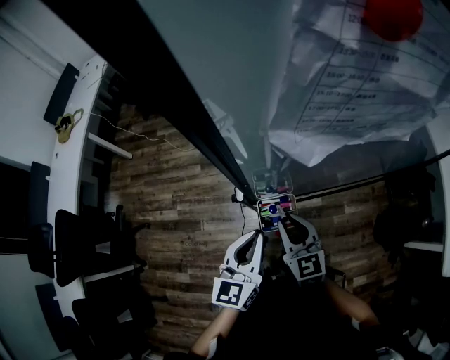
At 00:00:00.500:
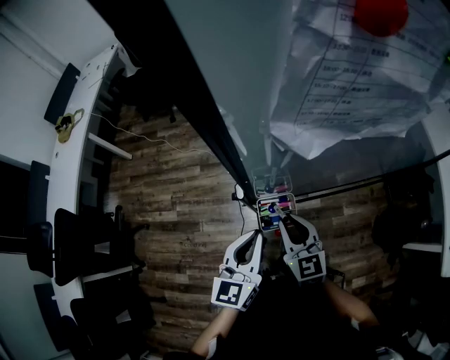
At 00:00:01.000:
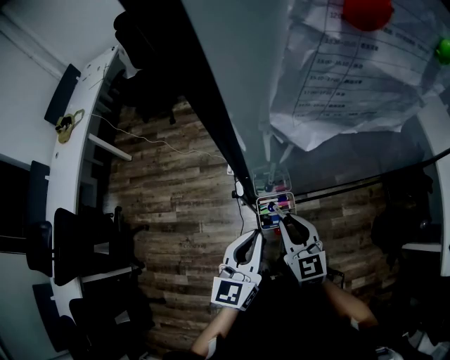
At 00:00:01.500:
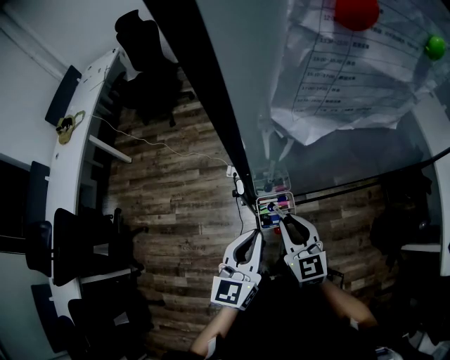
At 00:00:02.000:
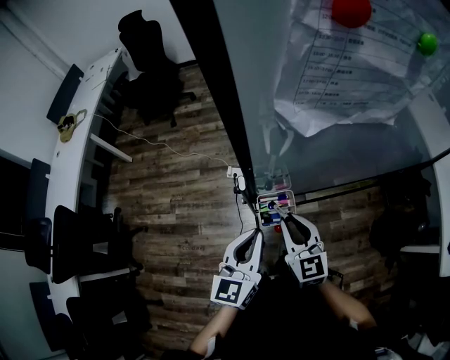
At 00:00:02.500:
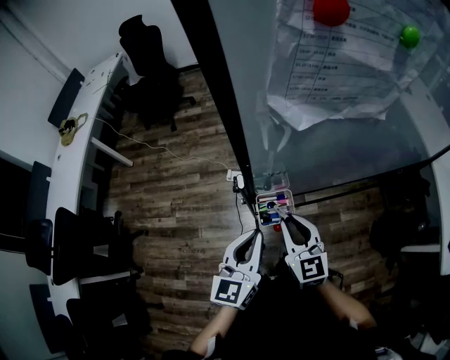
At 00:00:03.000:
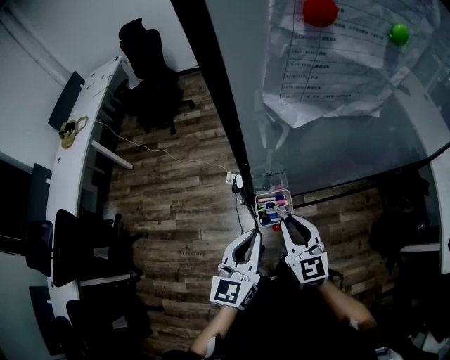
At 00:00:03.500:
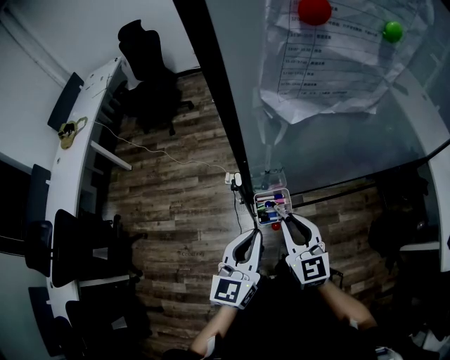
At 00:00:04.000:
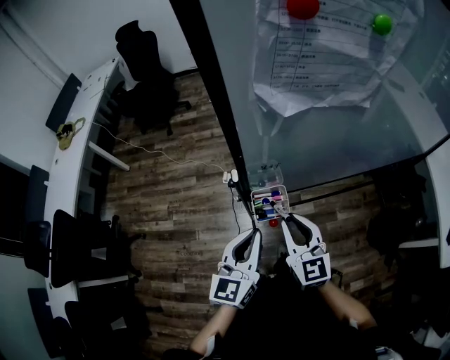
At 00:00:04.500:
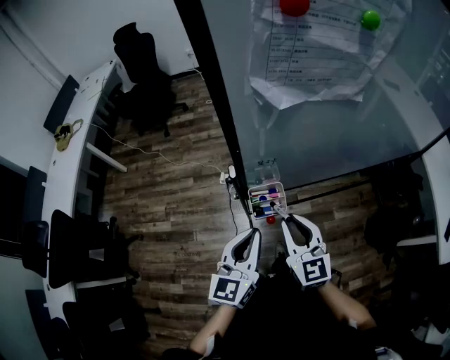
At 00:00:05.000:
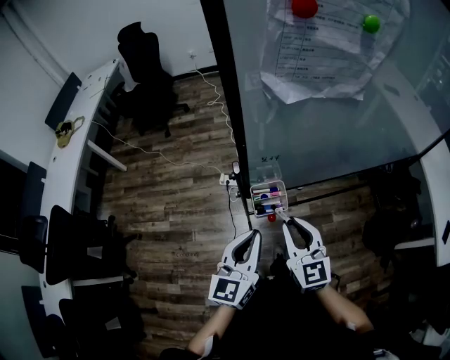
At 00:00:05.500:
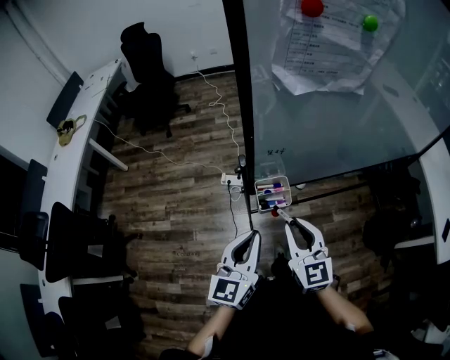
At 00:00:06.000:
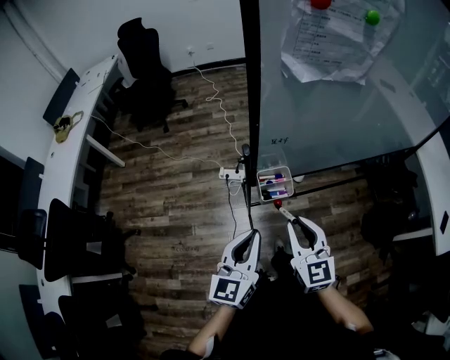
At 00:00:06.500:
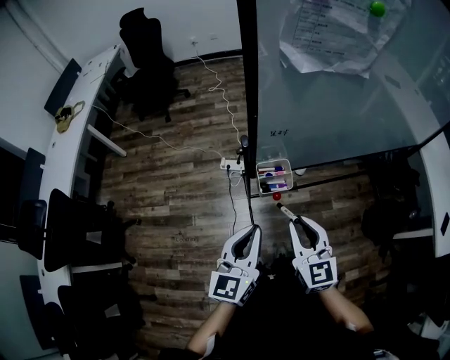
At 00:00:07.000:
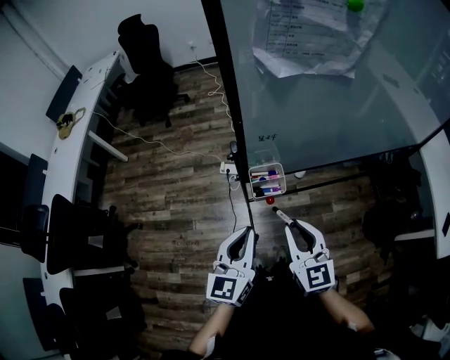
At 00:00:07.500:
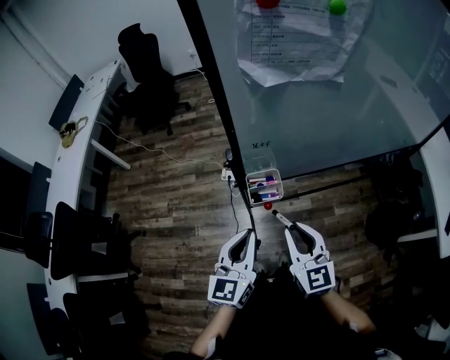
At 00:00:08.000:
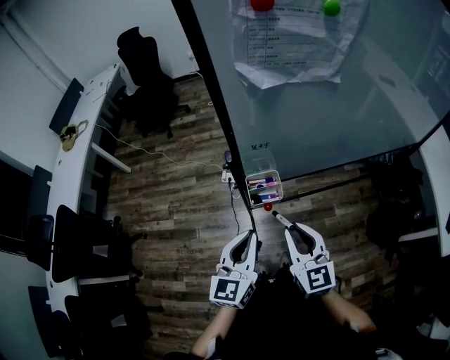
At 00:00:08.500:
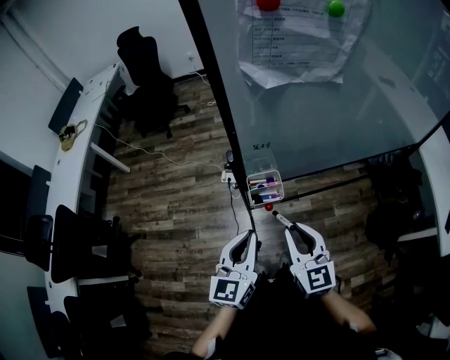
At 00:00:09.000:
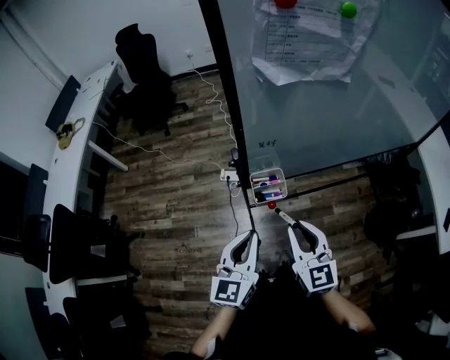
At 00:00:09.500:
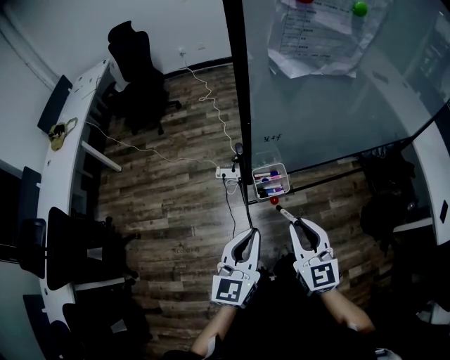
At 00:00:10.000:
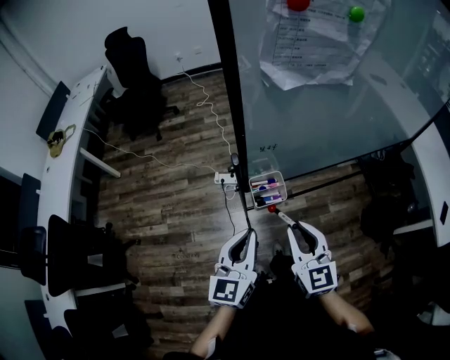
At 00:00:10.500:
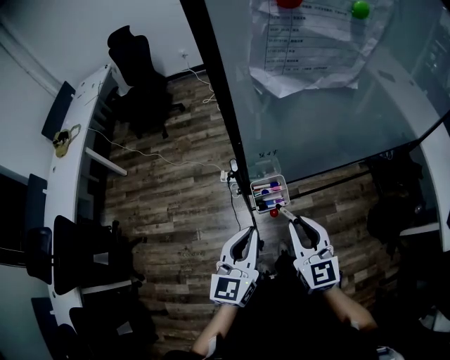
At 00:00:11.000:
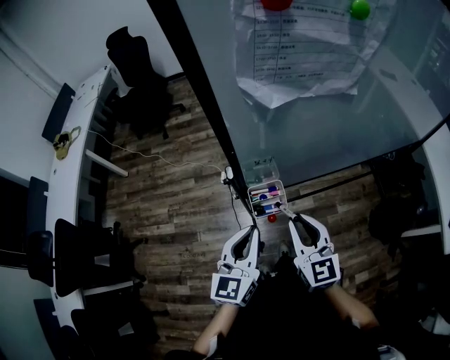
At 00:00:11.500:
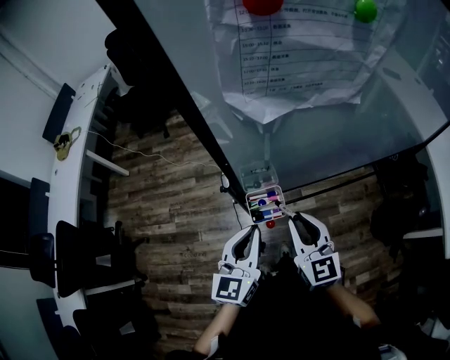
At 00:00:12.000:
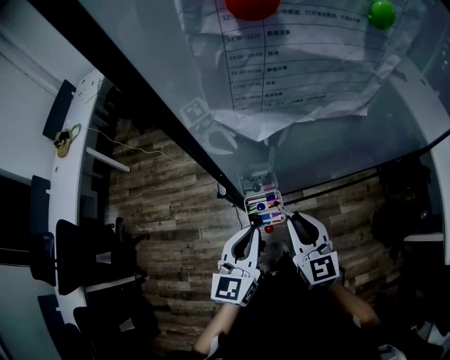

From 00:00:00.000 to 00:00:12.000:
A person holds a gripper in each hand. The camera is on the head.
From 00:00:00.000 to 00:00:02.000: The grippers move only a little.
From 00:00:02.000 to 00:00:04.000: The grippers make only small movements.
From 00:00:04.000 to 00:00:06.000: The grippers both shift backward by approximately 10 cm.
From 00:00:06.000 to 00:00:10.000: The grippers move only a little.
From 00:00:10.000 to 00:00:12.000: Both grippers move forward, roughly 10 cm.

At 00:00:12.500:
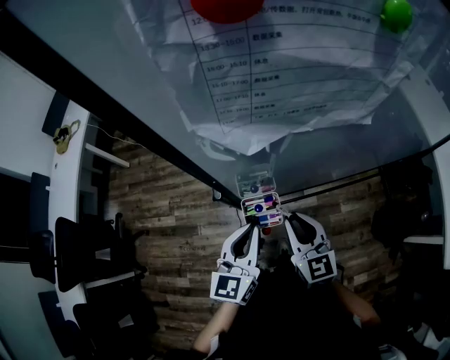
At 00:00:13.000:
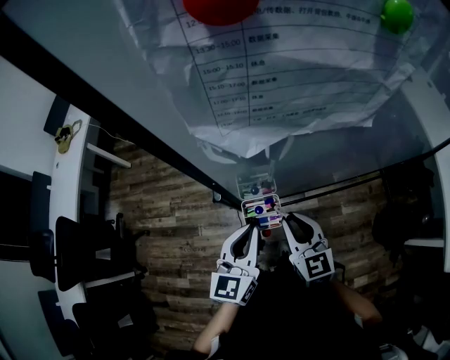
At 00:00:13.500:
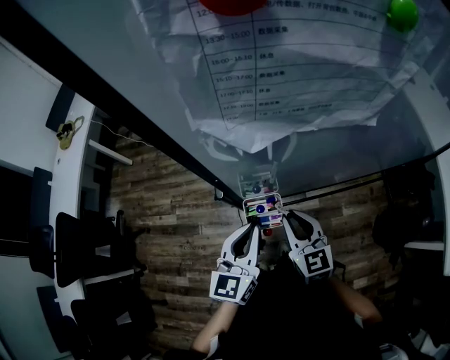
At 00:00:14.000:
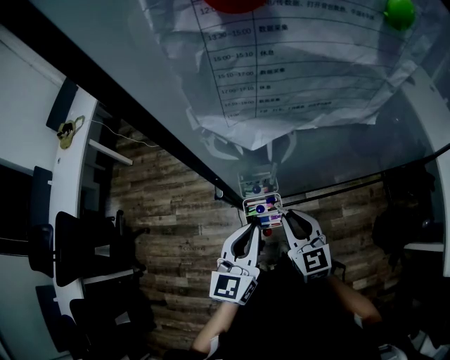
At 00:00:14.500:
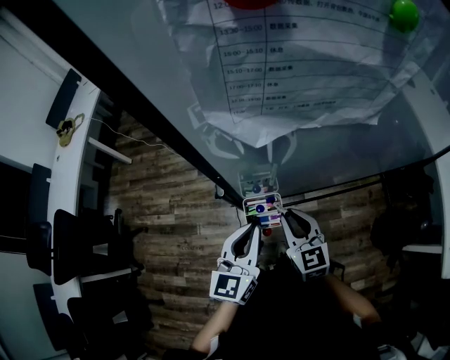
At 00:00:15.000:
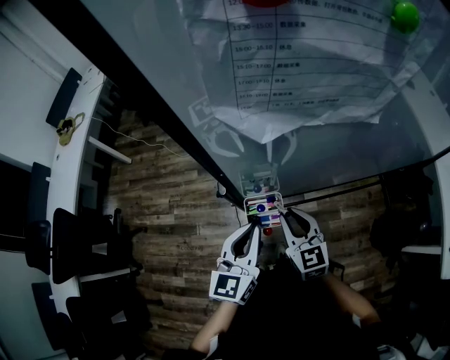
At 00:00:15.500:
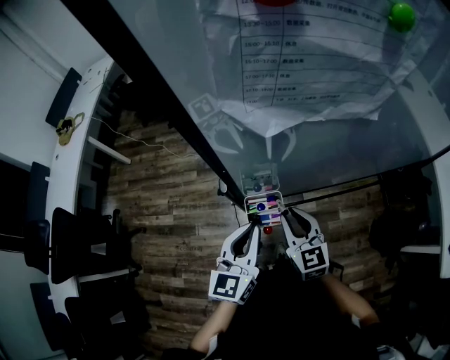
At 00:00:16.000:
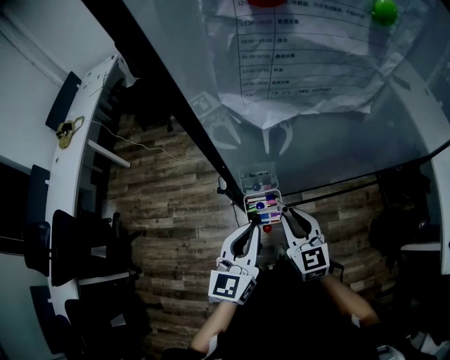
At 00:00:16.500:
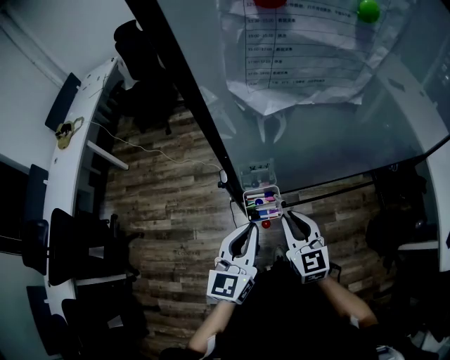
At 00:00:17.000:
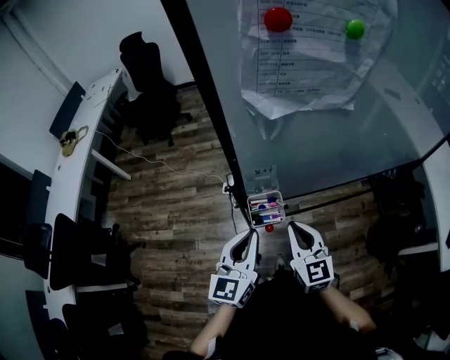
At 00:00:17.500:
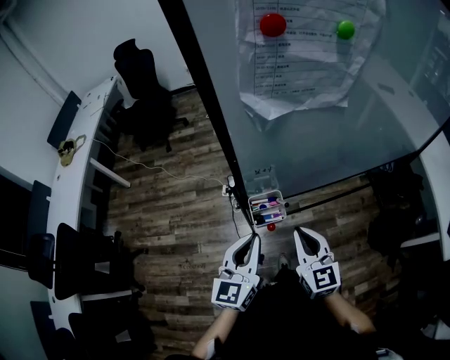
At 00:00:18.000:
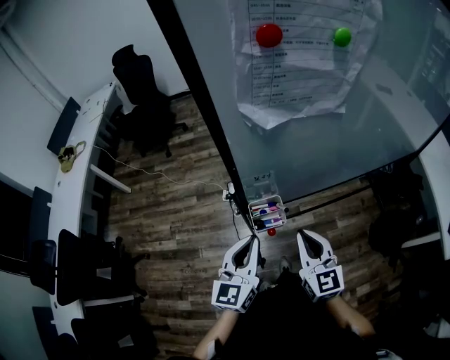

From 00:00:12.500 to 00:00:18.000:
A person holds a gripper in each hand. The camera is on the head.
From 00:00:12.500 to 00:00:16.000: The grippers move only a little.
From 00:00:16.000 to 00:00:18.000: The right gripper goes roughly 10 cm upward and backward.

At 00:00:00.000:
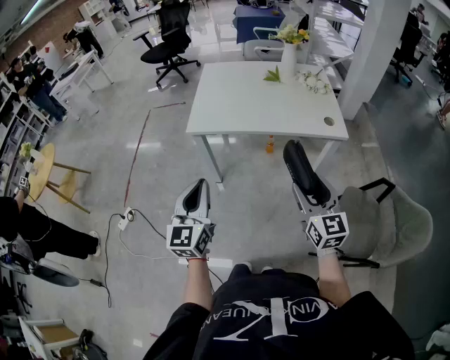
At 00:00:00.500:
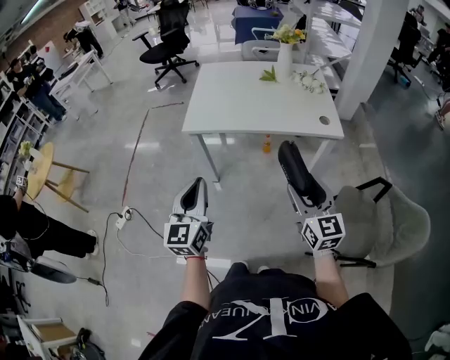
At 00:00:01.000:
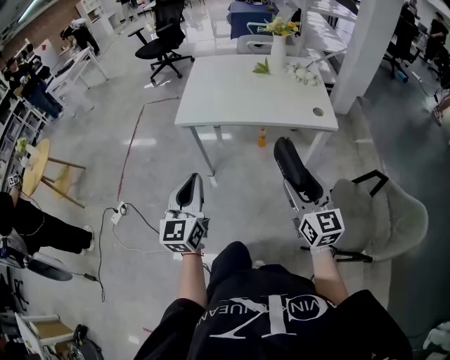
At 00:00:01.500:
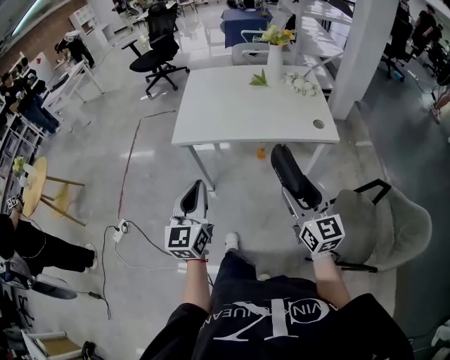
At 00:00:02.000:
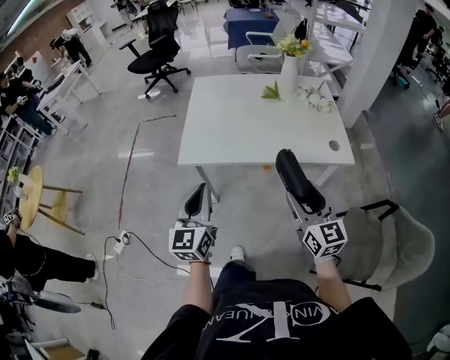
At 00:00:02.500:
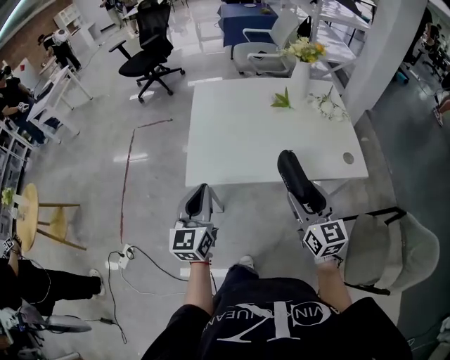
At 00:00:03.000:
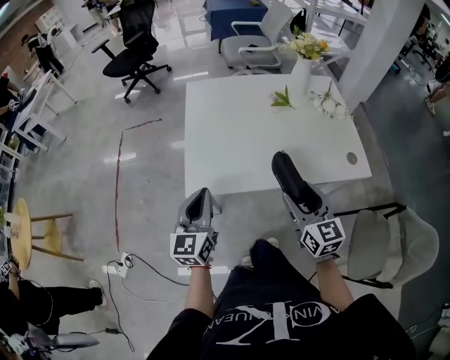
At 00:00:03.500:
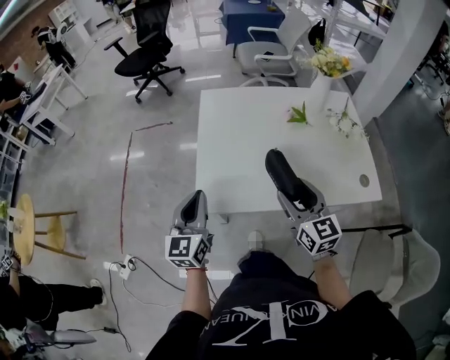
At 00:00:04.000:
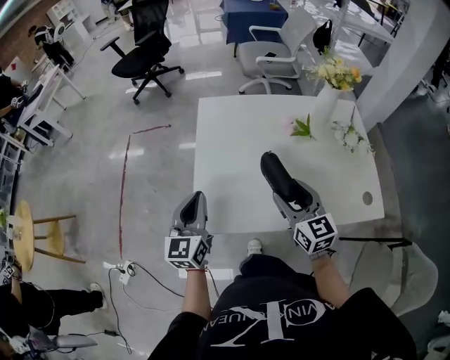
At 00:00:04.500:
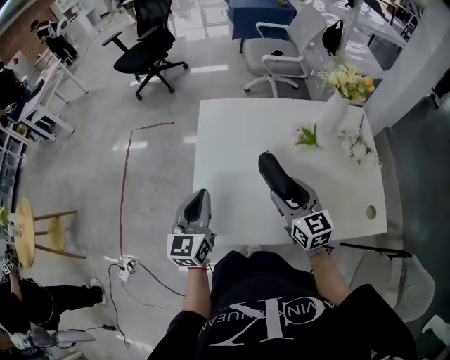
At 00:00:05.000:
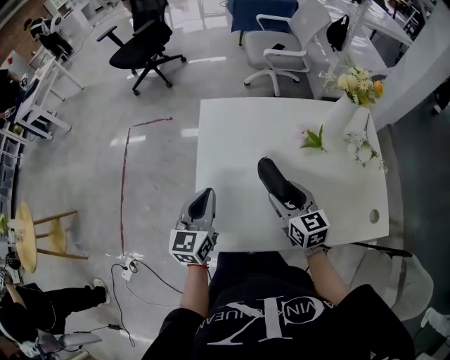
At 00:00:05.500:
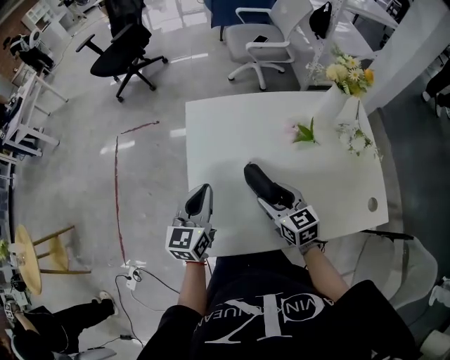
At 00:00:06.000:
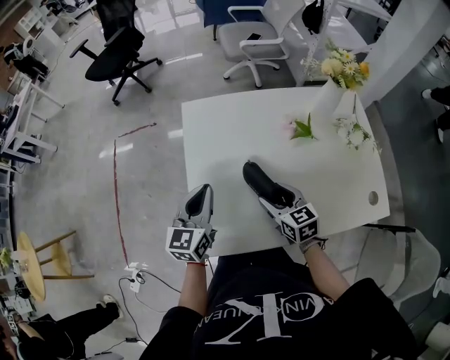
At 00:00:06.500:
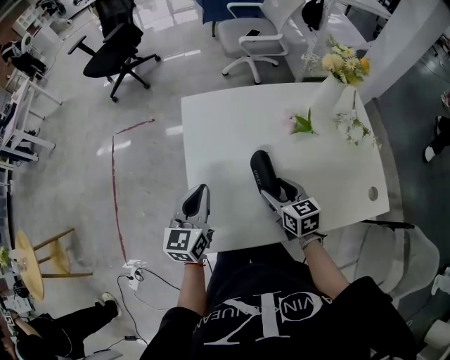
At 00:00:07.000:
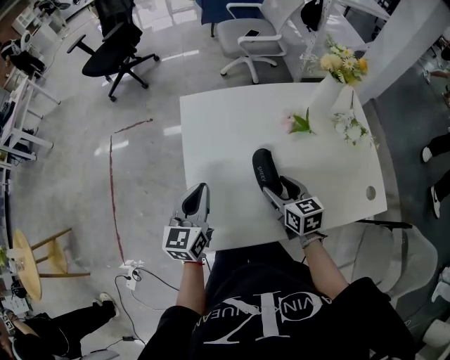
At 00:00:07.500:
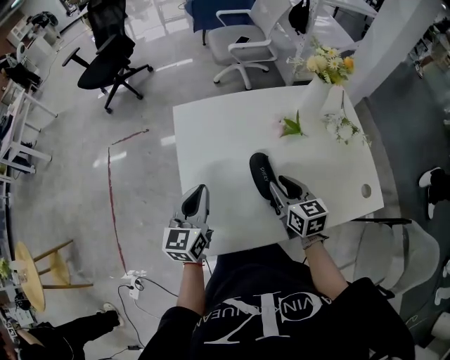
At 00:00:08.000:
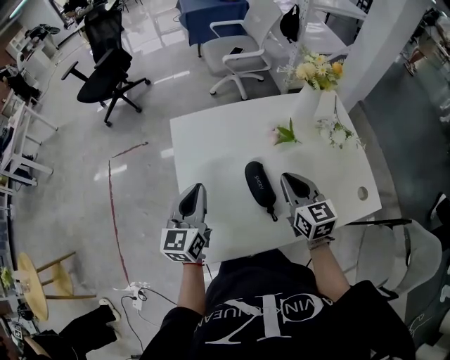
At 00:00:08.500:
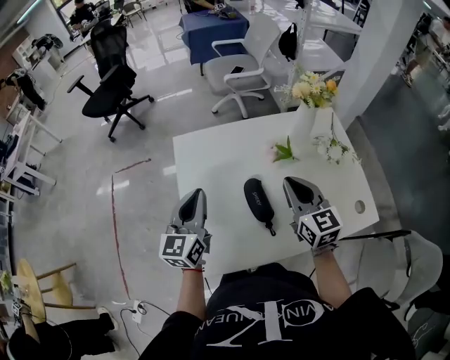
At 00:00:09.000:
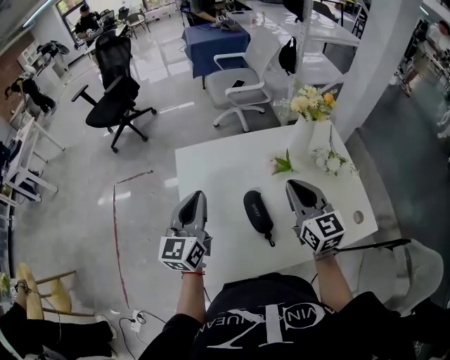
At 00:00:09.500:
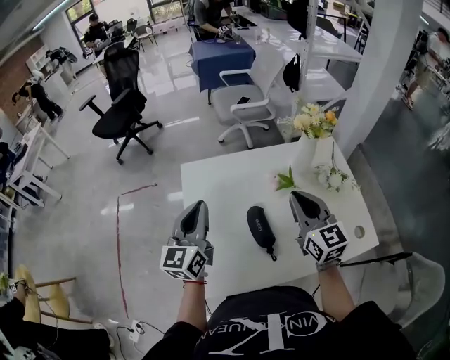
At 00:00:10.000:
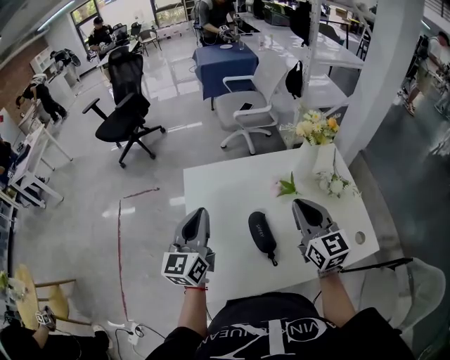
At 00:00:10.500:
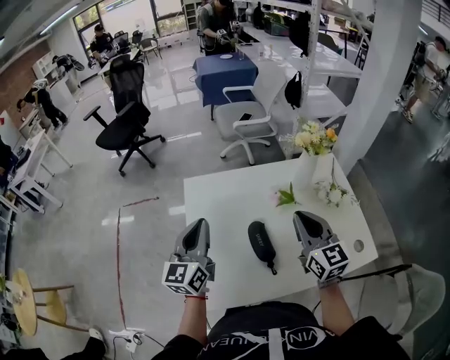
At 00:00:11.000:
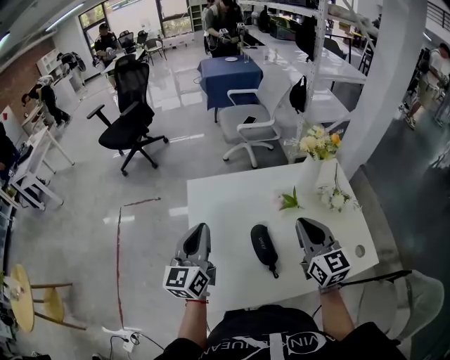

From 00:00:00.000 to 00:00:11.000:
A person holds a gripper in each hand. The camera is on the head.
From 00:00:00.000 to 00:00:02.000: Both grippers move forward, approximately 15 cm.
From 00:00:02.000 to 00:00:03.500: The grippers both shift forward and to the left by some 25 cm.
From 00:00:03.500 to 00:00:05.500: The right gripper travels forward and downward by some 20 cm, and swivels roughly 20 degrees. The left gripper travels forward by some 20 cm.
From 00:00:05.500 to 00:00:07.500: The right gripper travels to the right by approximately 5 cm, and closes.
From 00:00:07.500 to 00:00:09.000: The right gripper heads upward, covering about 15 cm, changes its angle by roughly 20 degrees, and closes up. Meanwhile the left gripper is displaced upward and forward by roughly 10 cm.
From 00:00:09.000 to 00:00:11.000: There are only small adjustments of the grippers.
